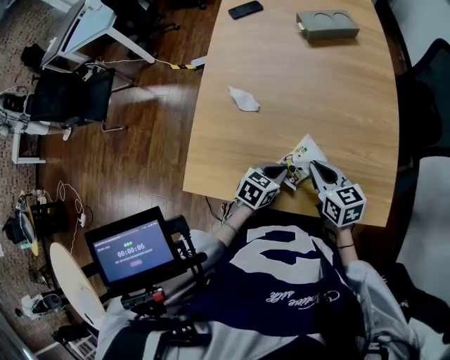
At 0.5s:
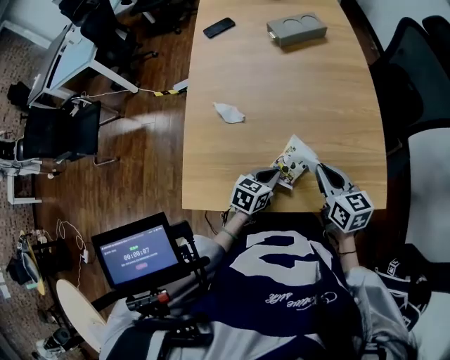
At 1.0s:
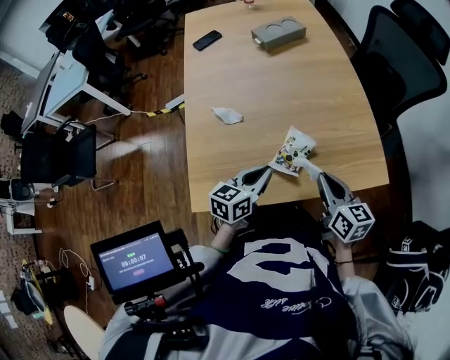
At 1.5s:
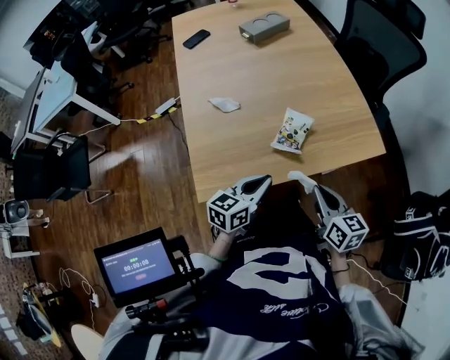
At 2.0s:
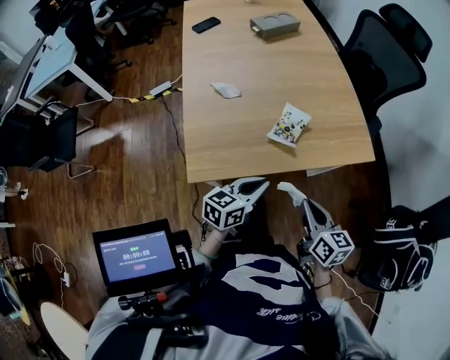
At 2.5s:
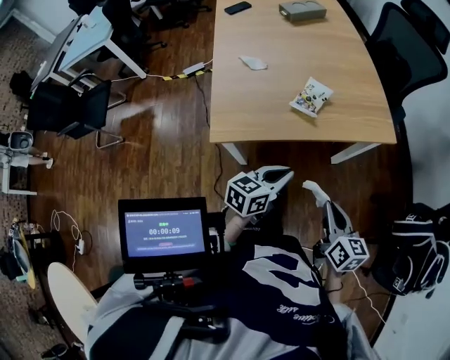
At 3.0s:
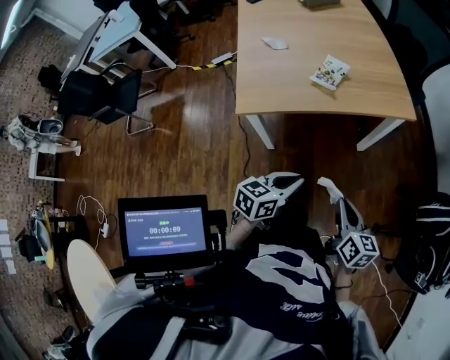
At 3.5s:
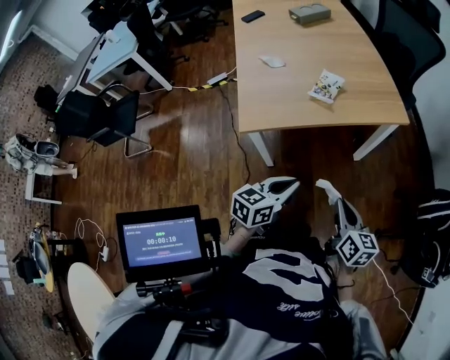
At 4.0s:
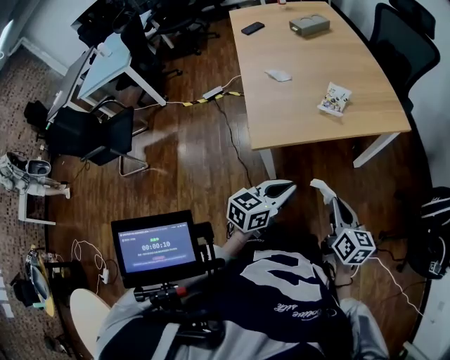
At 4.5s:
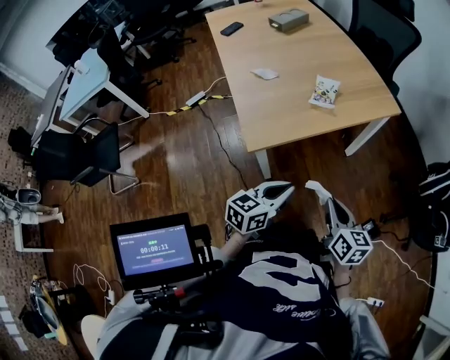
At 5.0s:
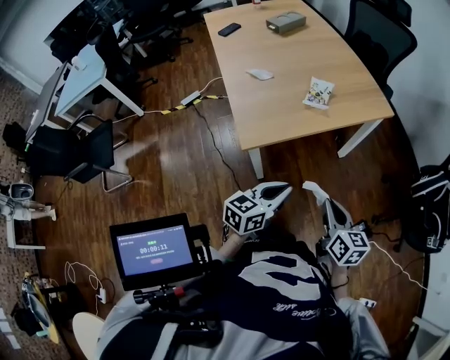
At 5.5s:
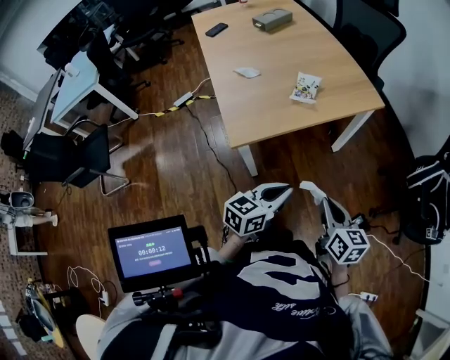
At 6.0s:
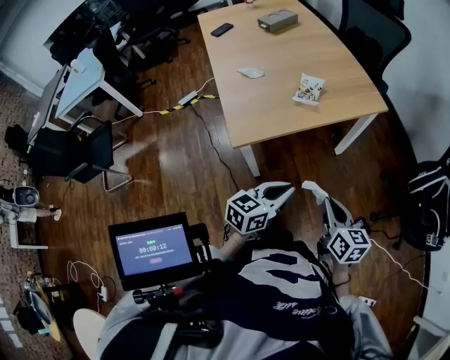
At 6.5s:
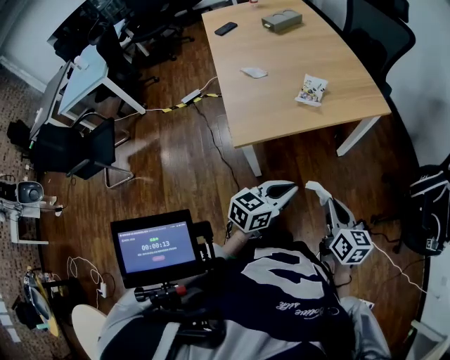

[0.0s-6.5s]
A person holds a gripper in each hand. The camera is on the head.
0.0s to 2.0s: The right gripper travels backward by some 30 cm, and rotates approximately 30 degrees. The left gripper shifts some 25 cm backward and upward, and rotates approximately 30 degrees.
2.0s to 4.5s: The grippers both shift backward by about 20 cm.
4.5s to 6.5s: The two grippers go approximately 10 cm to the right.

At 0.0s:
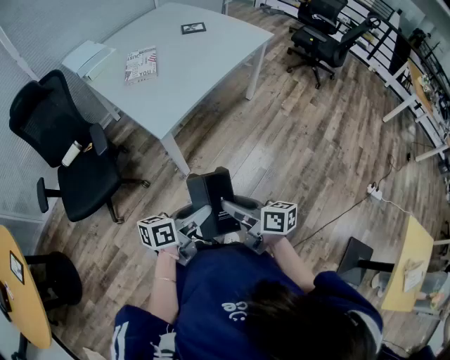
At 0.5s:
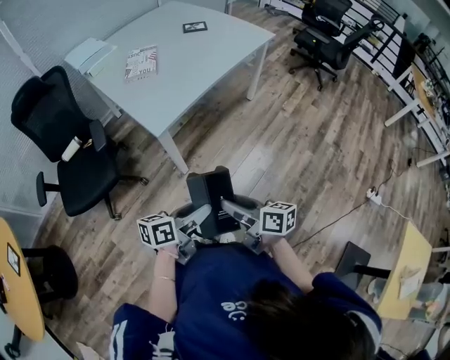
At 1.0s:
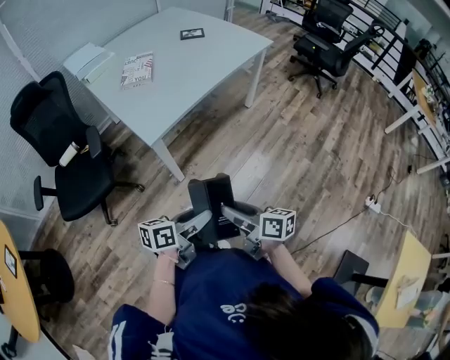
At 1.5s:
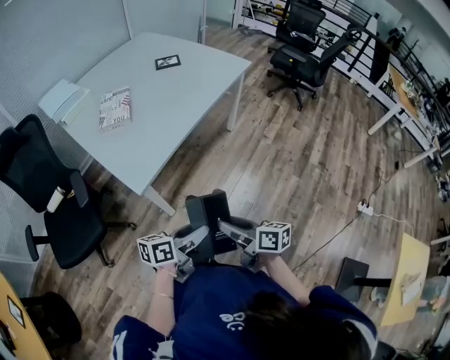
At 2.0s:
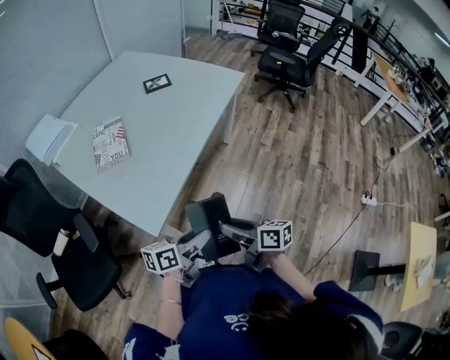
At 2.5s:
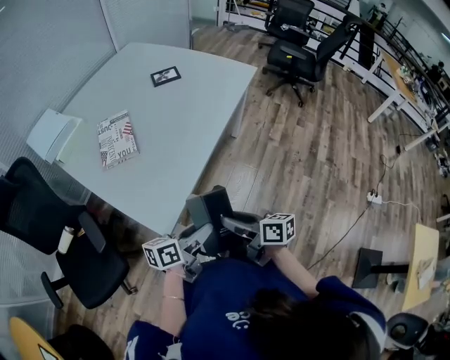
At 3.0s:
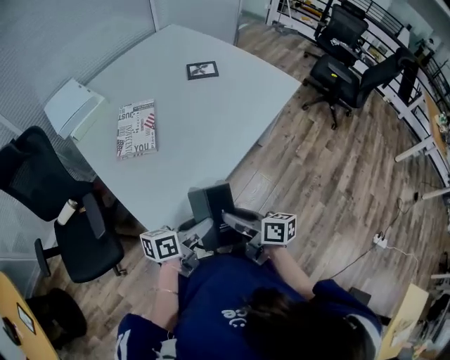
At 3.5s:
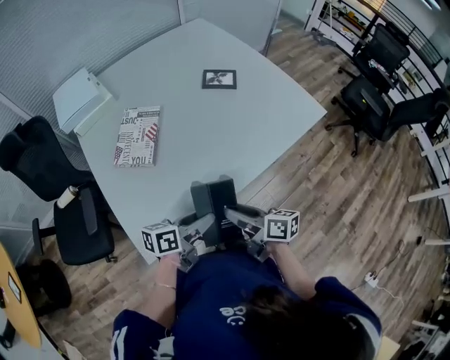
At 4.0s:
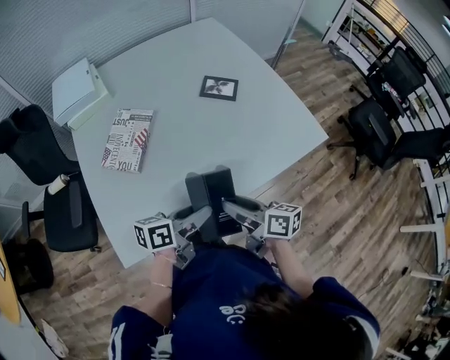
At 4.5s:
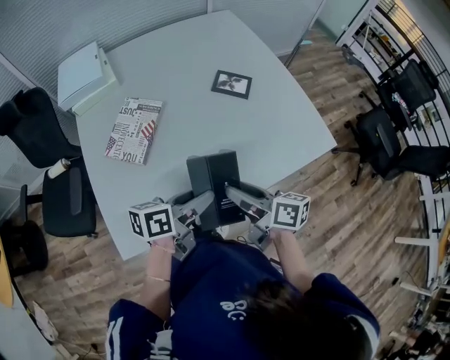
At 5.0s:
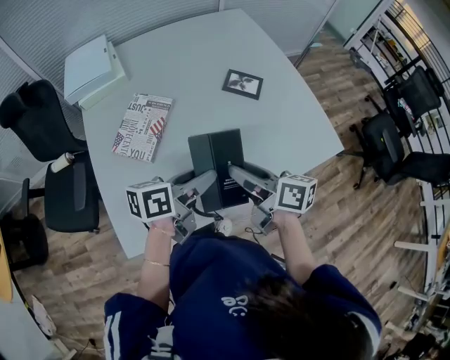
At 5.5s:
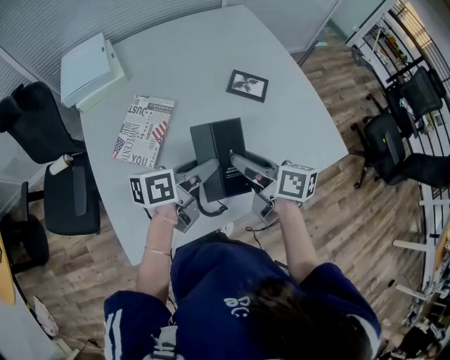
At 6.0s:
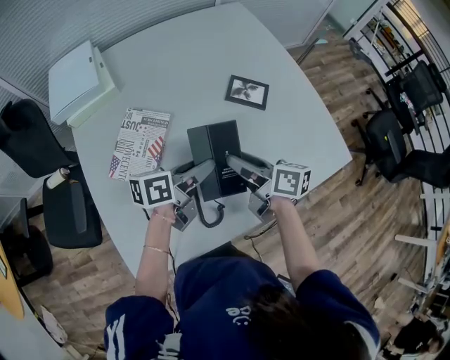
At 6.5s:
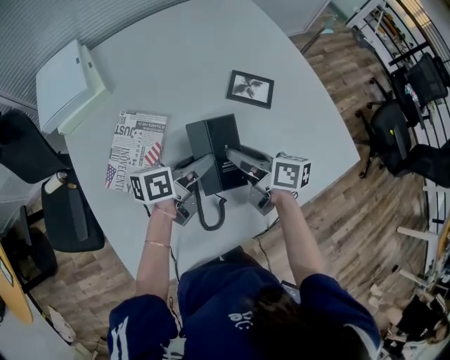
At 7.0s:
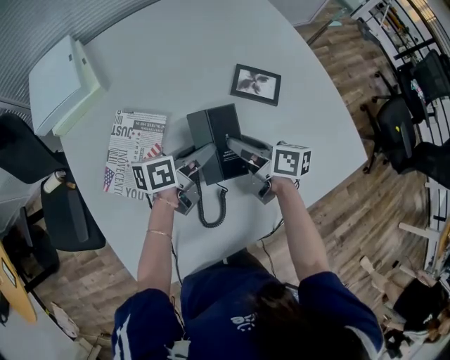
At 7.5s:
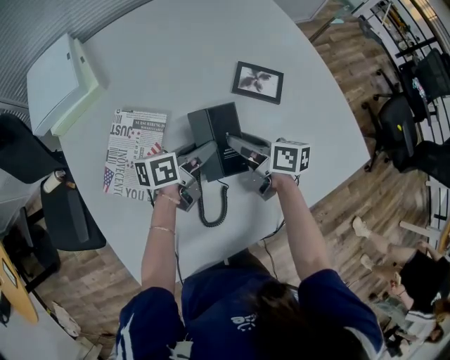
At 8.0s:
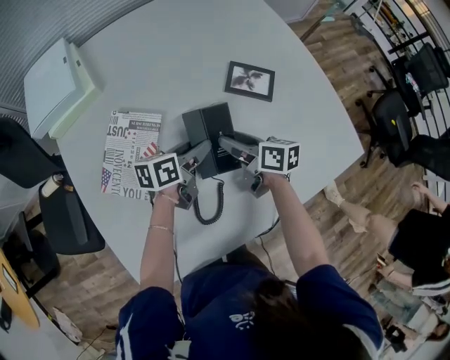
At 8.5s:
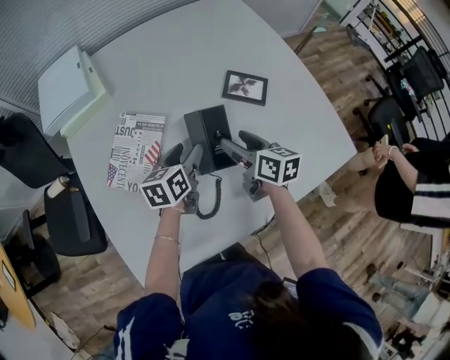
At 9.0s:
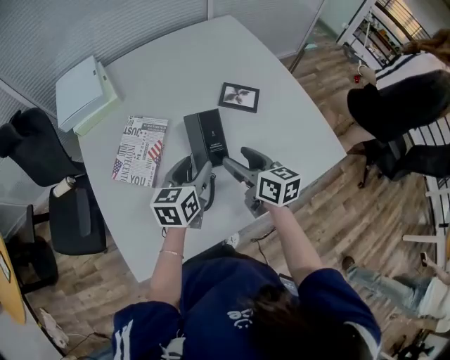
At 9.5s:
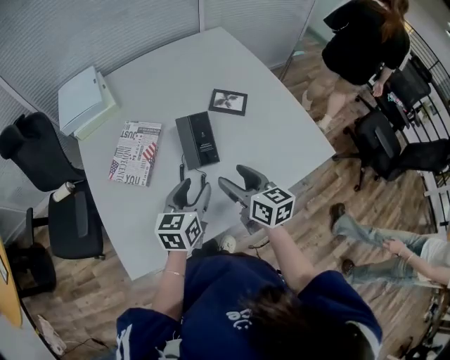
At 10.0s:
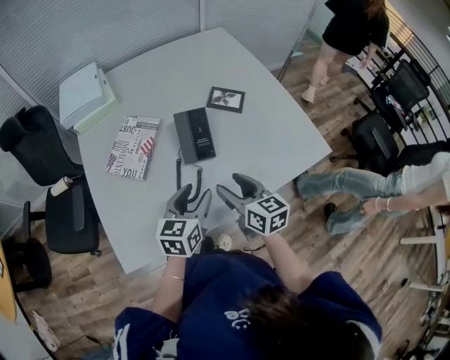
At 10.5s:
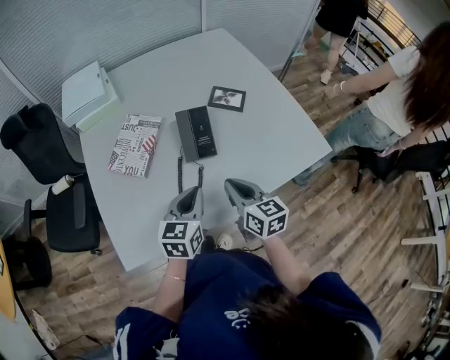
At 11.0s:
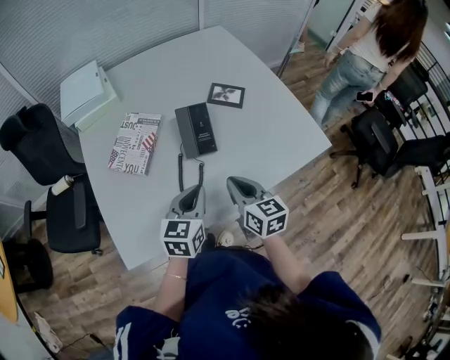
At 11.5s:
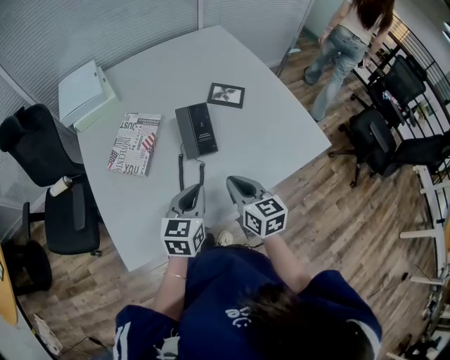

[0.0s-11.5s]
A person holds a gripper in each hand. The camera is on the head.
0.0s to 2.0s: The grippers both shift forward by approximately 25 cm.
2.0s to 4.0s: The right gripper changes place by some 40 cm, and changes its angle by approximately 30 degrees. The left gripper ends up roughly 35 cm from where it was, and swivels roughly 30 degrees.
4.0s to 6.0s: Both grippers move forward, roughly 20 cm.
6.0s to 7.5s: The grippers both shift downward and forward by approximately 15 cm.
7.5s to 9.5s: Both grippers move backward and upward, some 20 cm. The right gripper swivels roughly 30 degrees; the left gripper swivels approximately 40 degrees.
9.5s to 11.5s: Both grippers move backward, approximately 5 cm. The left gripper closes up; the right gripper closes its fingers.

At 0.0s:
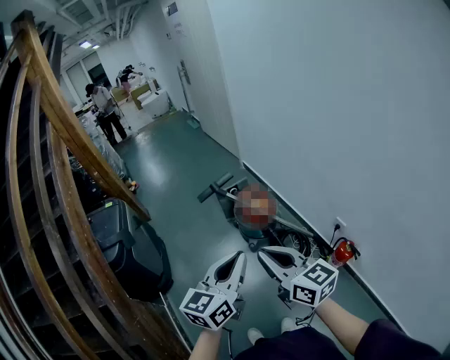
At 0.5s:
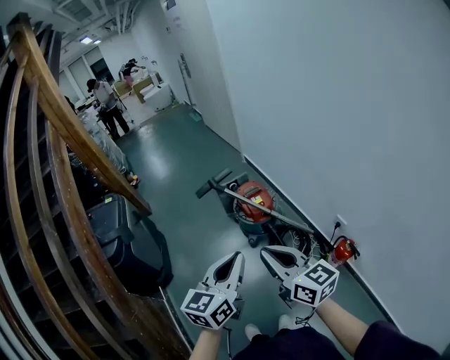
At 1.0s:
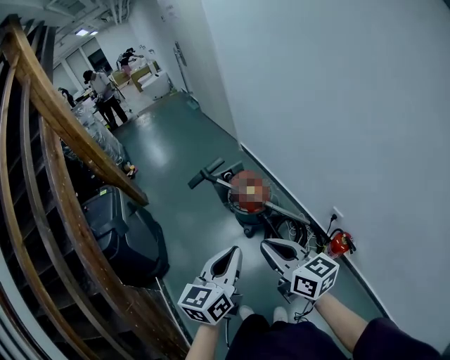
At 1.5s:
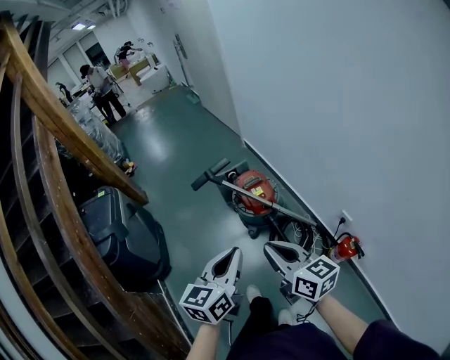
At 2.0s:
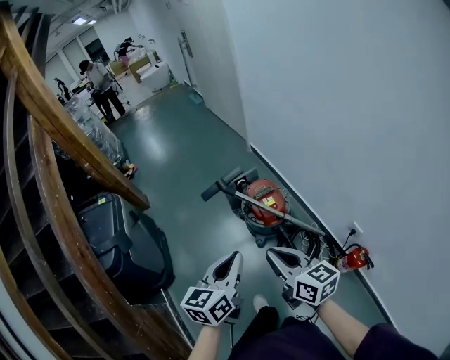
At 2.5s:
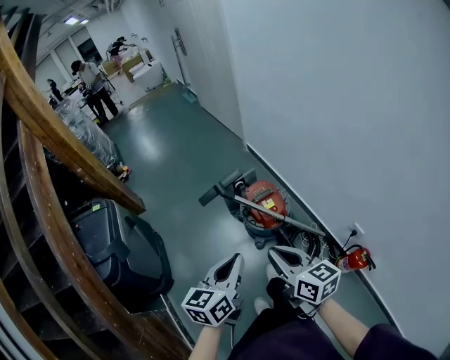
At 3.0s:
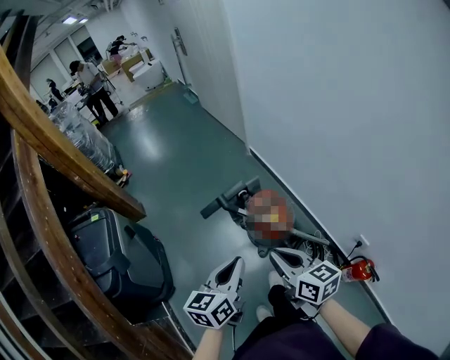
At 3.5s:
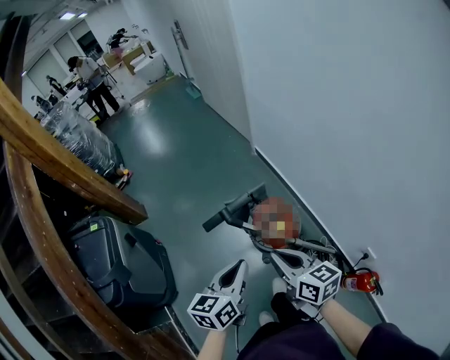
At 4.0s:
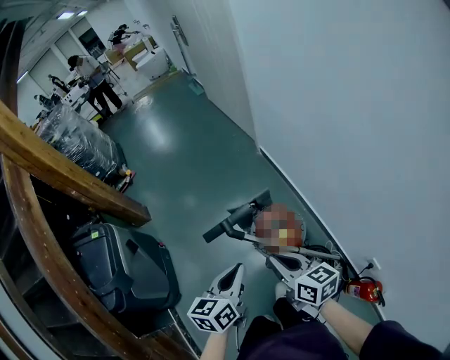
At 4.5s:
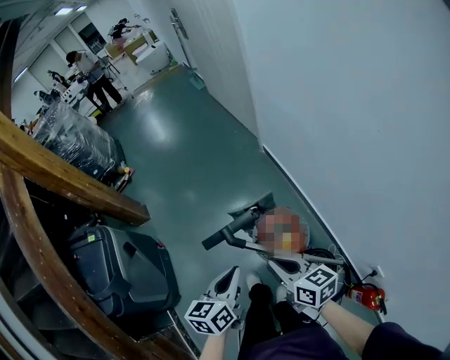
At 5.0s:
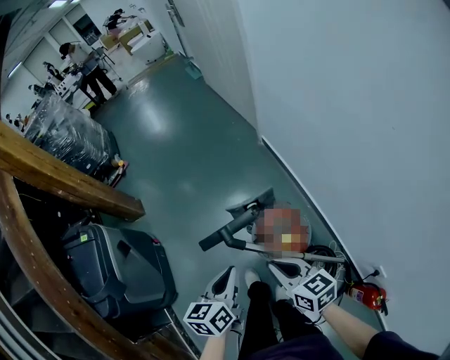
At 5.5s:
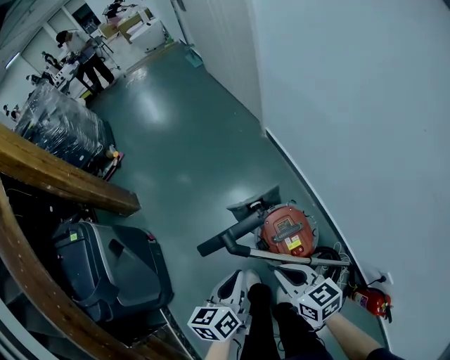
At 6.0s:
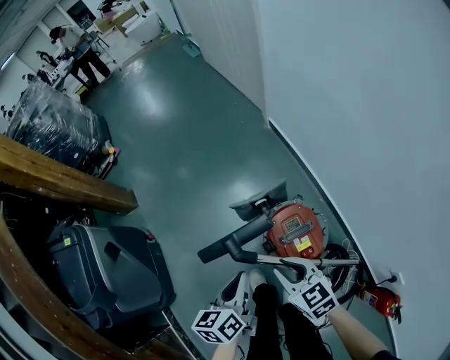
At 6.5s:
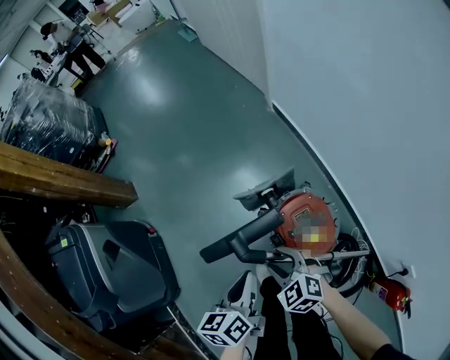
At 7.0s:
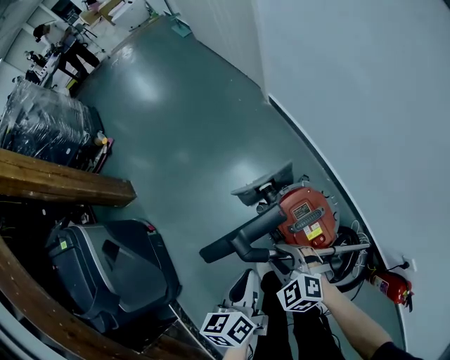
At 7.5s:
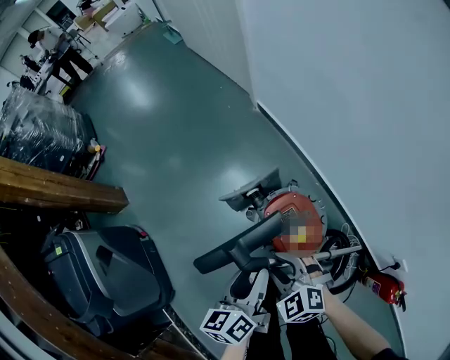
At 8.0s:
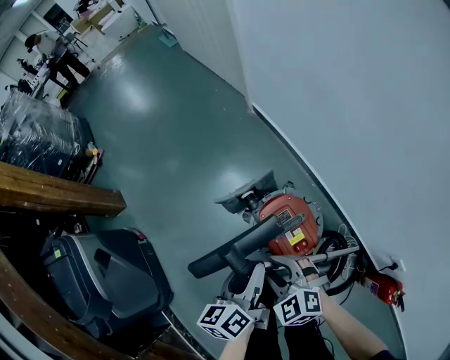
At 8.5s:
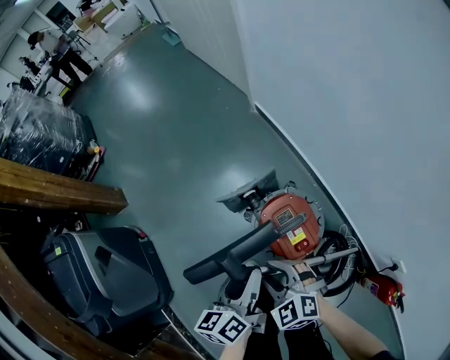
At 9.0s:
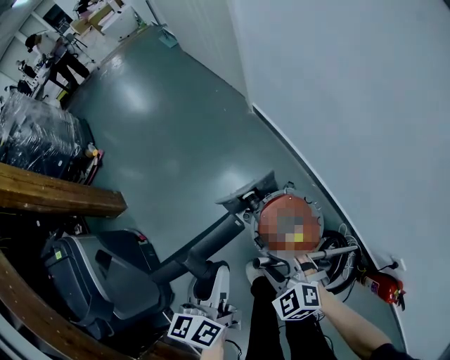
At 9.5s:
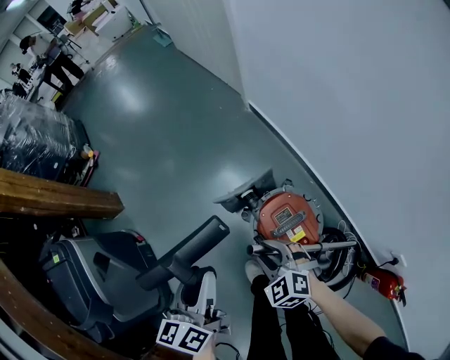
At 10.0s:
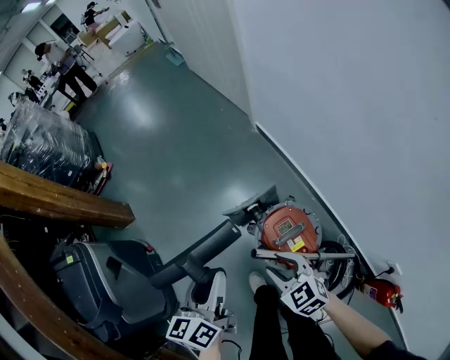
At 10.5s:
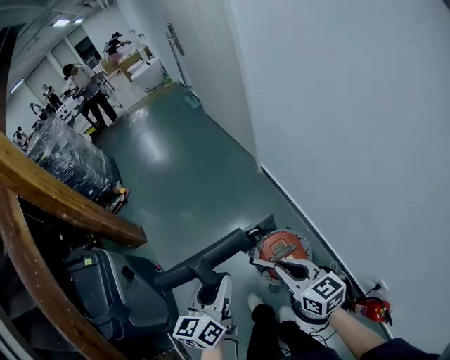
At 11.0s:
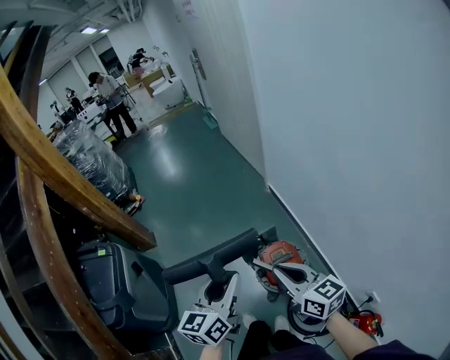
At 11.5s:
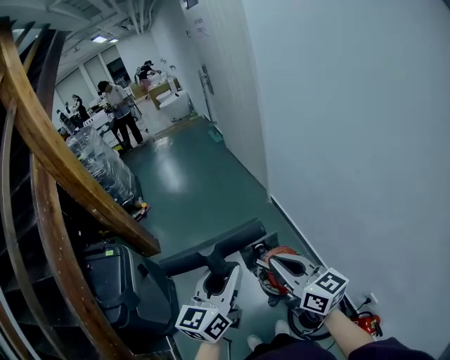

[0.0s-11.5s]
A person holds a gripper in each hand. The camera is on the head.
0.0s to 2.0s: Both grippers travel together forward and downward, about 20 cm.
2.0s to 4.0s: The grippers both shift forward by about 25 cm.
4.0s to 6.0s: Both grippers move downward and forward, approximately 25 cm. The right gripper swivels approximately 30 degrees.
6.0s to 7.5s: The left gripper heads to the right, covering about 5 cm, and opens; the right gripper rotates about 30 degrees, and opens up.
7.5s to 9.5s: The right gripper shifts by some 5 cm; the left gripper travels to the left, upward and forward by approximately 15 cm.
9.5s to 11.5s: The right gripper travels upward by about 50 cm, tips its fingers upward by approximately 50 degrees, and closes up. The left gripper goes about 35 cm upward and backward, and changes its angle by roughly 30 degrees.
